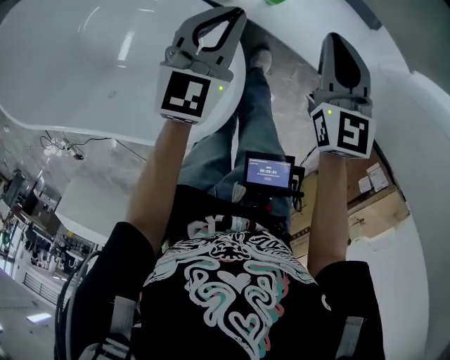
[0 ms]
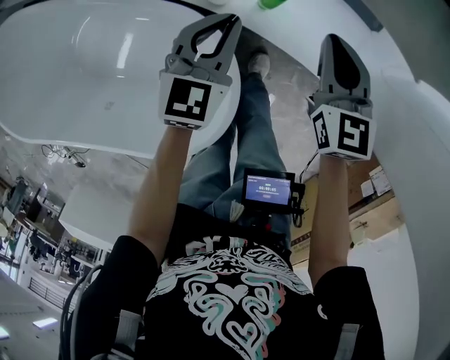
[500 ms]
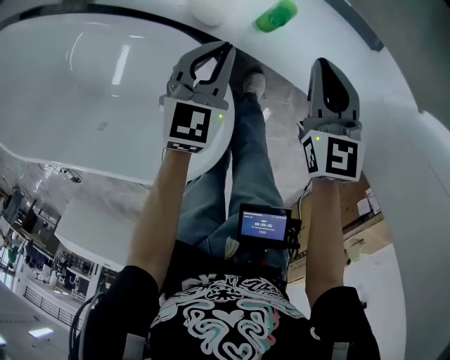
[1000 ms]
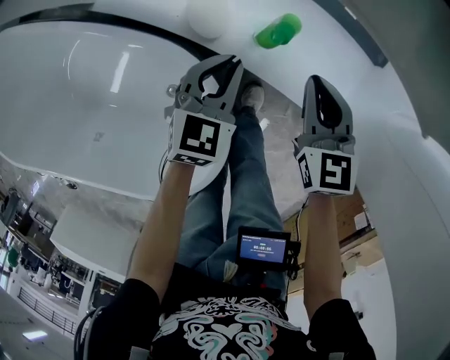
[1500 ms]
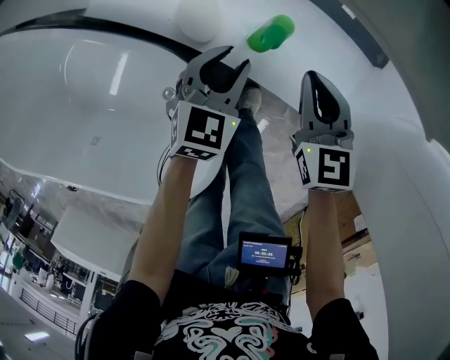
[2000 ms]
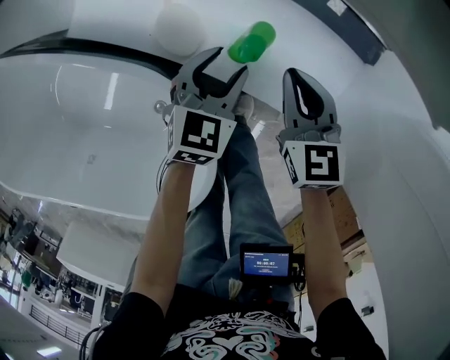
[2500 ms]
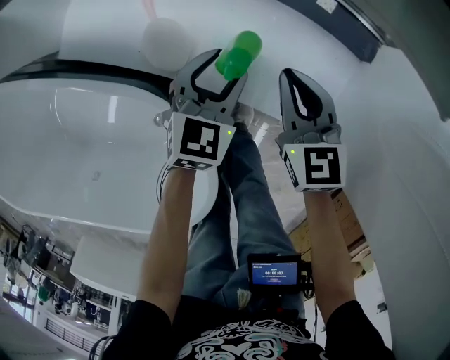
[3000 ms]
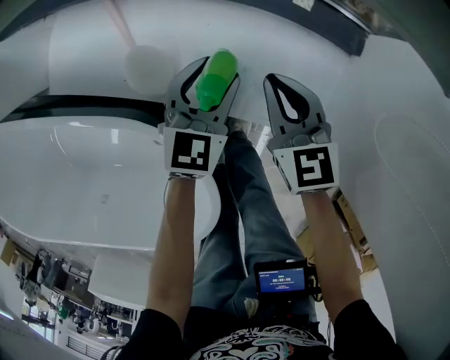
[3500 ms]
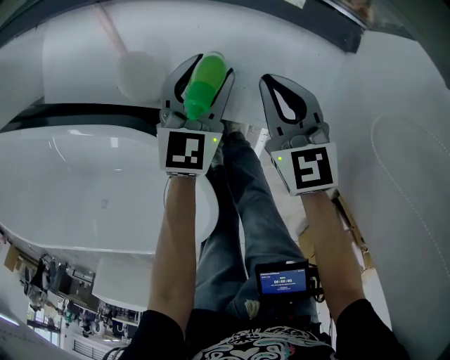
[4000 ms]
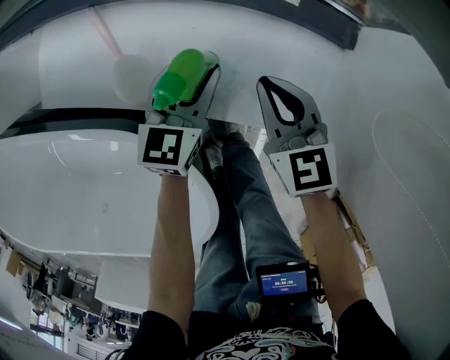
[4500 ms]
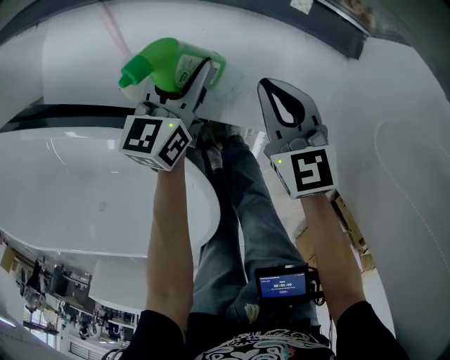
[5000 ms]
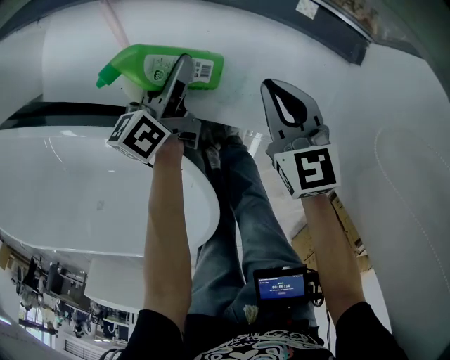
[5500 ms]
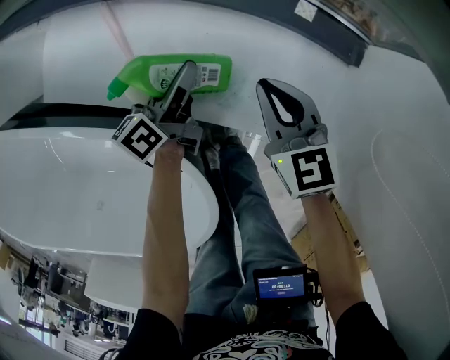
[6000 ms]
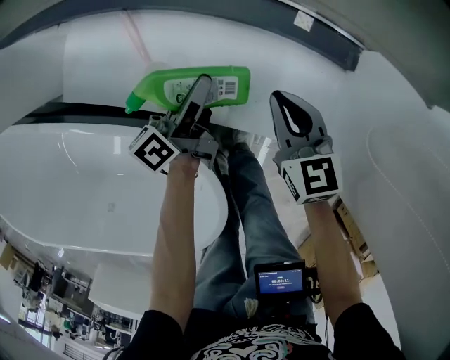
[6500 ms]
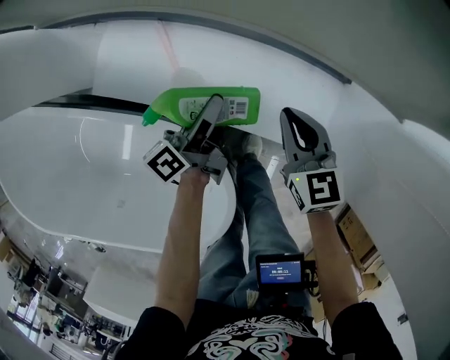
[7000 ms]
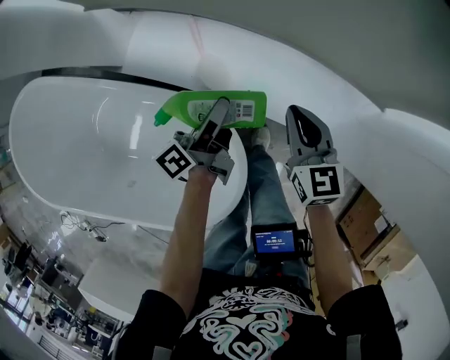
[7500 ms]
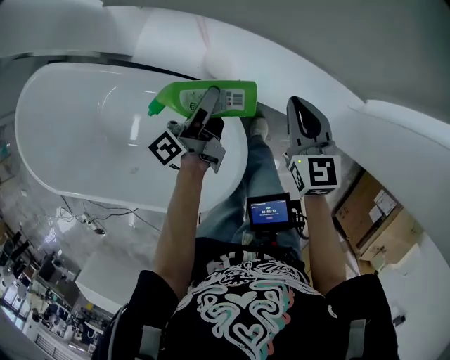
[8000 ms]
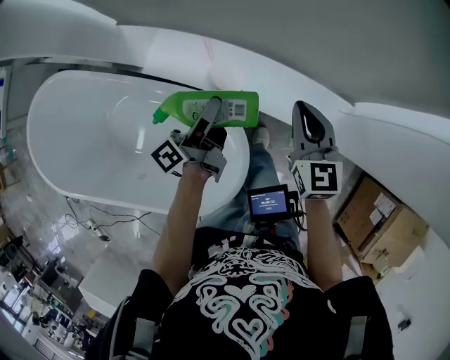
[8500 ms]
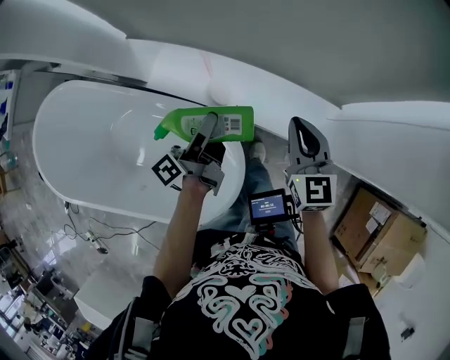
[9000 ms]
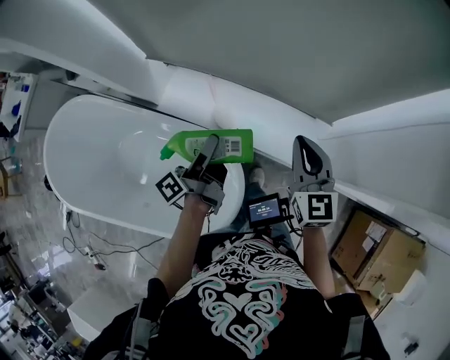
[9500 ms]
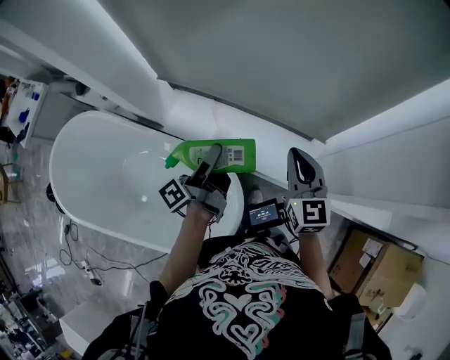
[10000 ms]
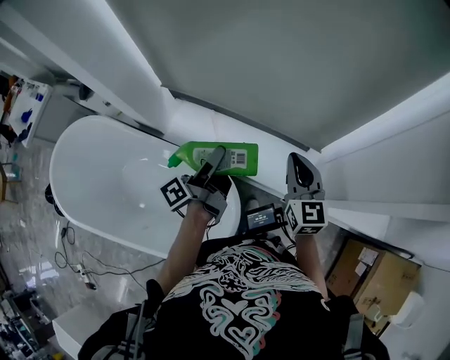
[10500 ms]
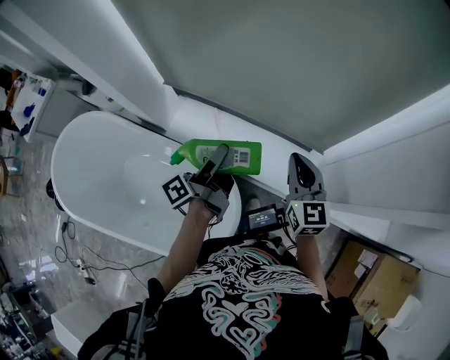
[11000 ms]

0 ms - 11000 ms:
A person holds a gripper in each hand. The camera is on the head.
0 ms - 2000 ms: The grippers both shift downward by roughly 15 cm. The left gripper opens.
2000 ms - 3500 ms: The right gripper moves about 5 cm; the left gripper goes some 10 cm forward and to the right.
3500 ms - 5500 ms: The left gripper travels to the left by approximately 10 cm, and rolls counterclockwise, seen from behind, by approximately 60 degrees.
5500 ms - 7500 ms: The two grippers go approximately 25 cm upward and backward. The left gripper rotates about 30 degrees.
7500 ms - 9000 ms: Both grippers travel together upward, roughly 20 cm.
9000 ms - 11000 ms: The grippers both shift upward by some 15 cm.

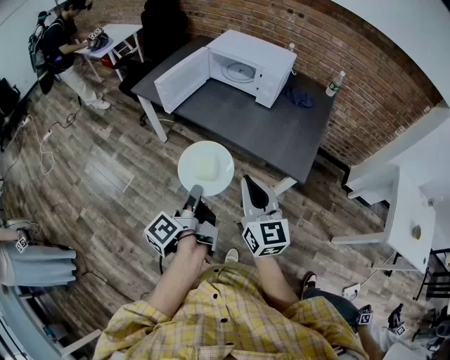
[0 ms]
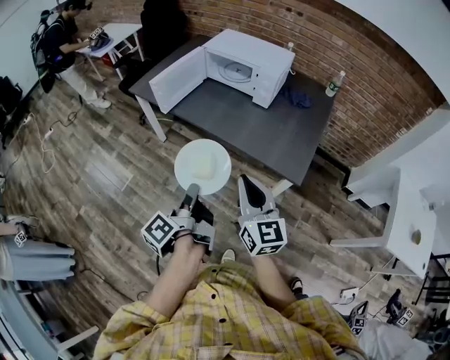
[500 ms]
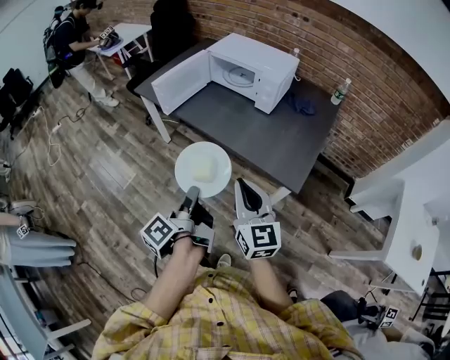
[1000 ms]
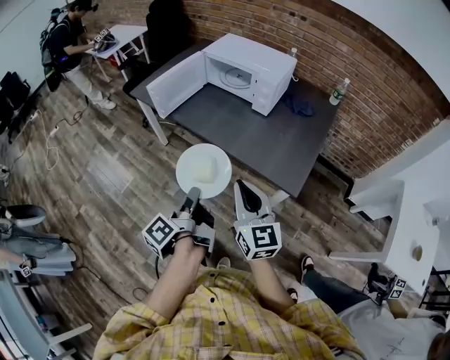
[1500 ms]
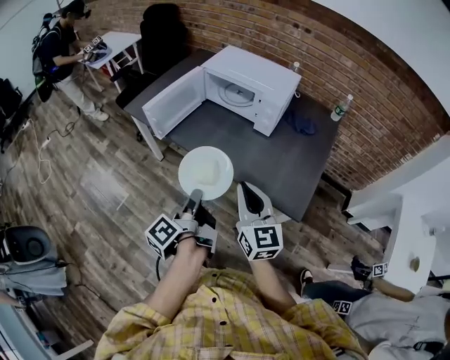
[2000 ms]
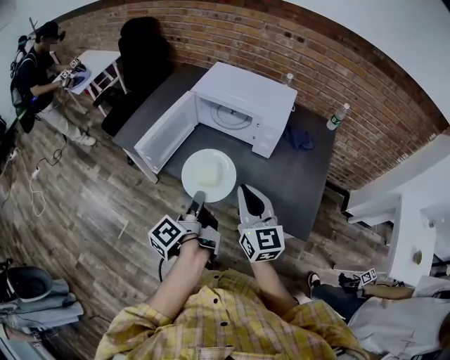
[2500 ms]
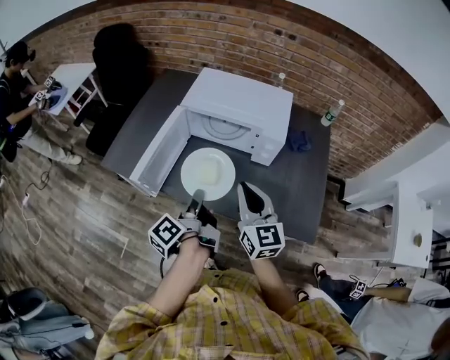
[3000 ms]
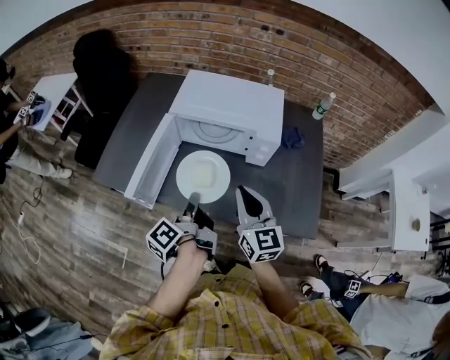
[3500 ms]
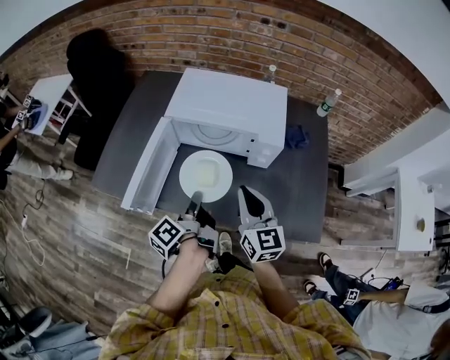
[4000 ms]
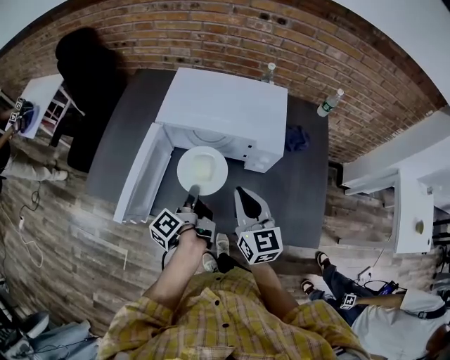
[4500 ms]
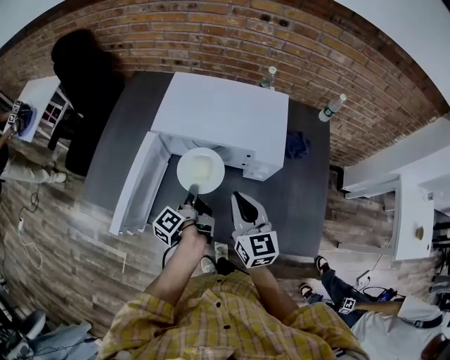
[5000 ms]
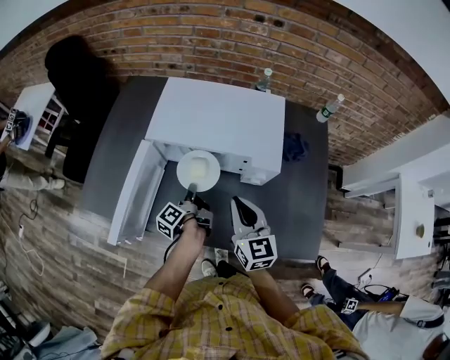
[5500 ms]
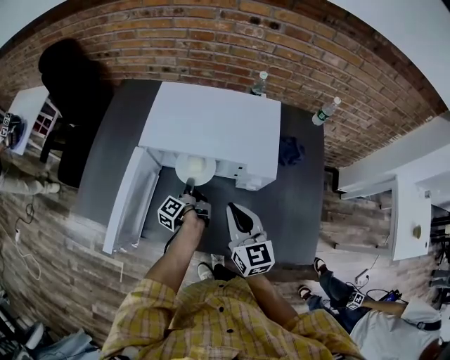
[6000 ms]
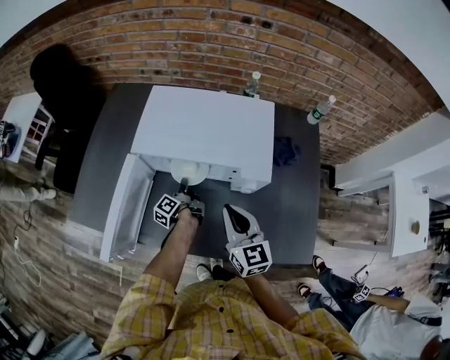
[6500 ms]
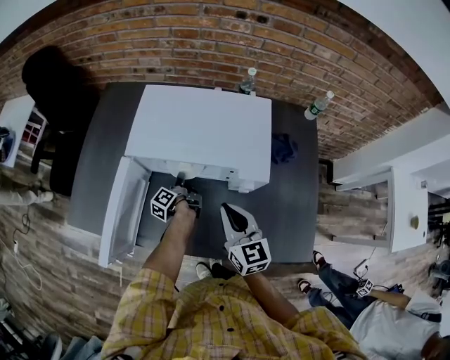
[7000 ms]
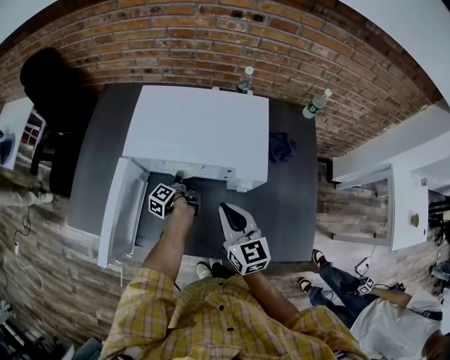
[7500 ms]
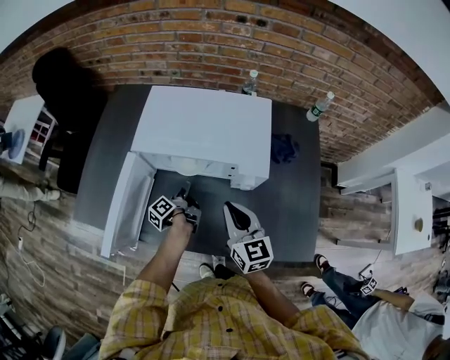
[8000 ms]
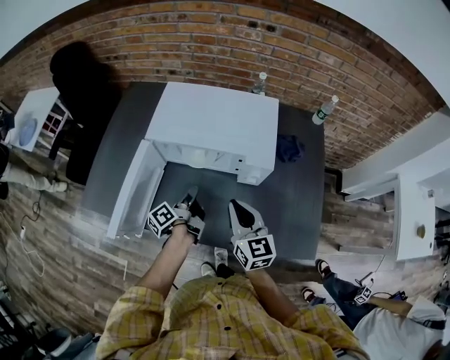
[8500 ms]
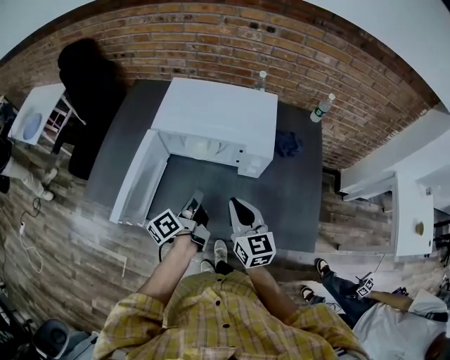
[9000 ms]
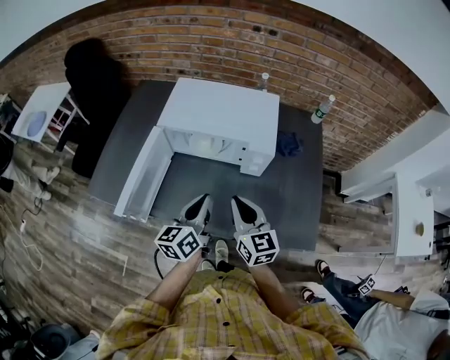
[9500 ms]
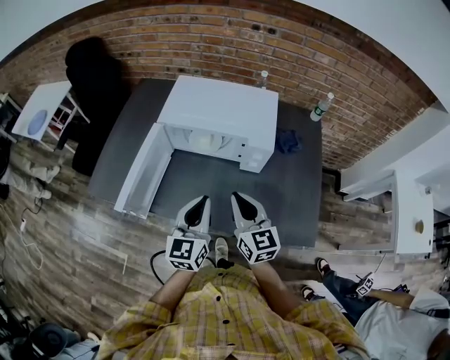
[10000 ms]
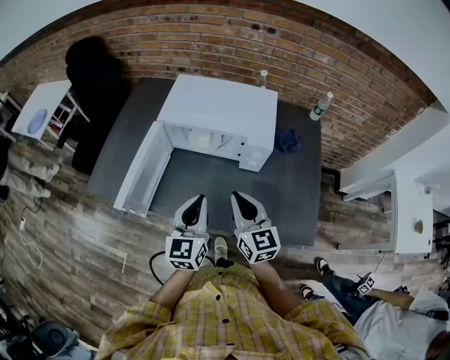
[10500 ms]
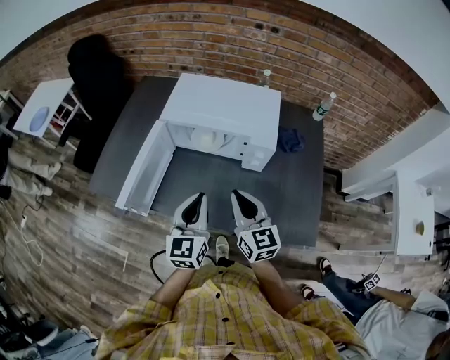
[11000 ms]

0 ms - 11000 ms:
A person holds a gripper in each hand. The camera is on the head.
0 ms - 2000 ms: The right gripper shifts by about 15 cm.
2000 ms - 3500 ms: The right gripper shifts by some 25 cm.
3500 ms - 5500 ms: The right gripper changes place by approximately 15 cm.
7500 ms - 9000 ms: The right gripper ends up some 10 cm from where it was.

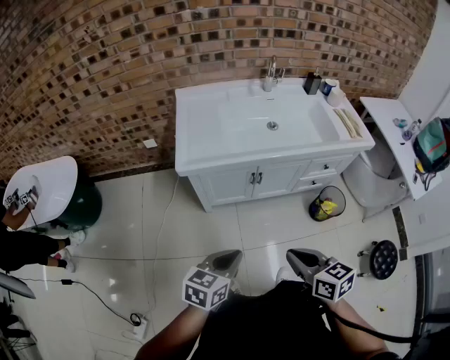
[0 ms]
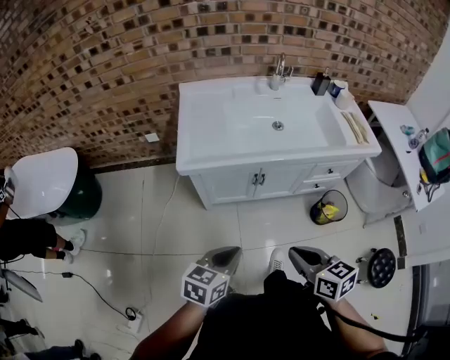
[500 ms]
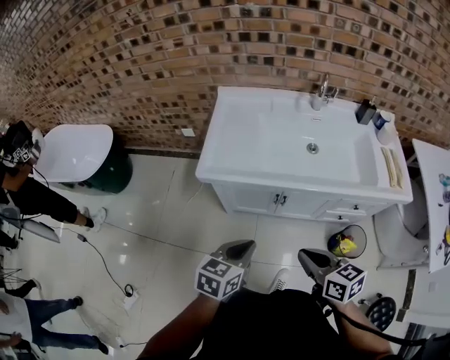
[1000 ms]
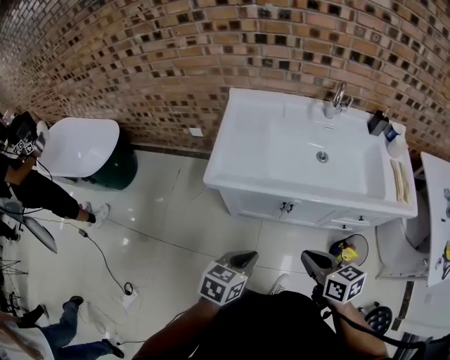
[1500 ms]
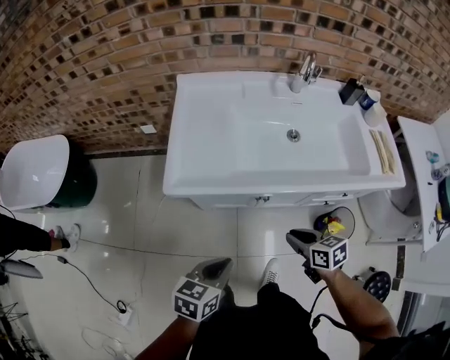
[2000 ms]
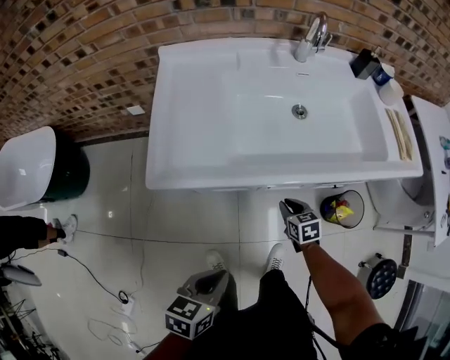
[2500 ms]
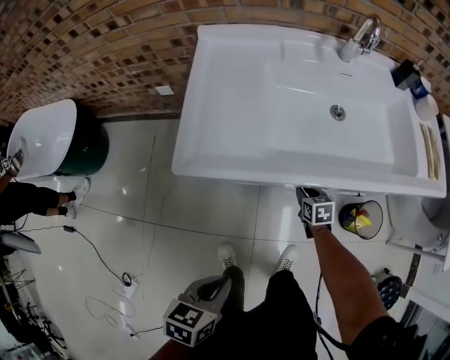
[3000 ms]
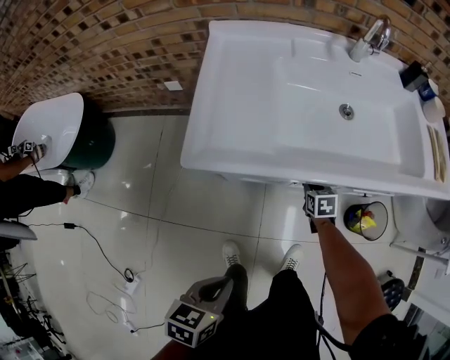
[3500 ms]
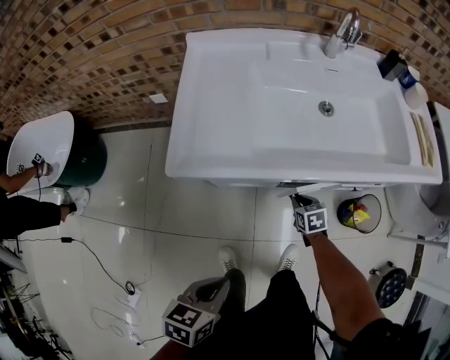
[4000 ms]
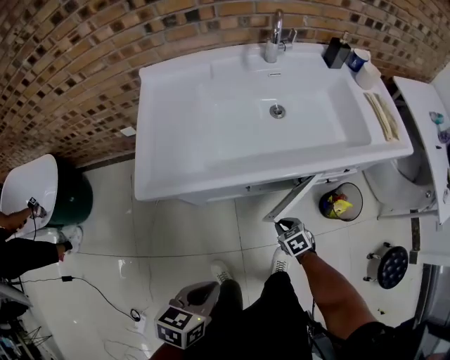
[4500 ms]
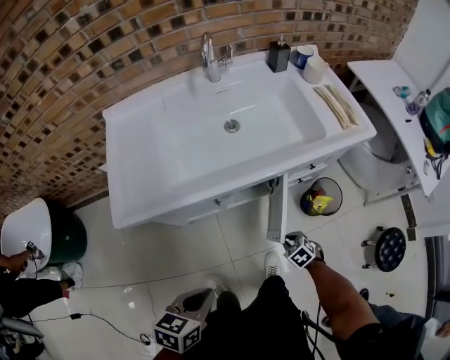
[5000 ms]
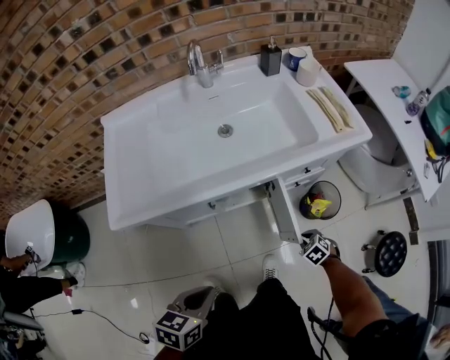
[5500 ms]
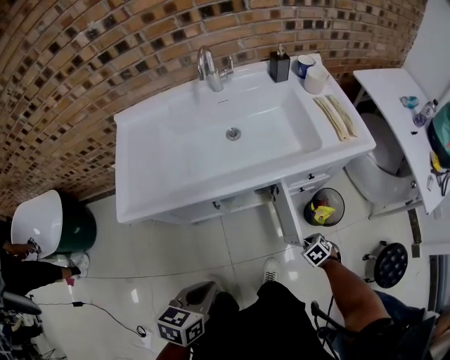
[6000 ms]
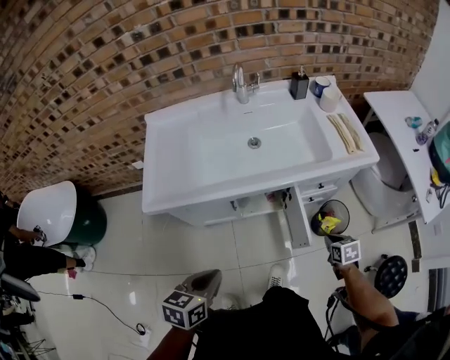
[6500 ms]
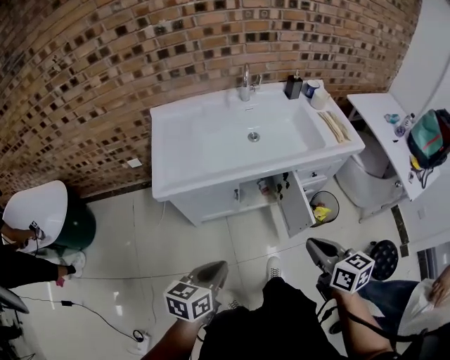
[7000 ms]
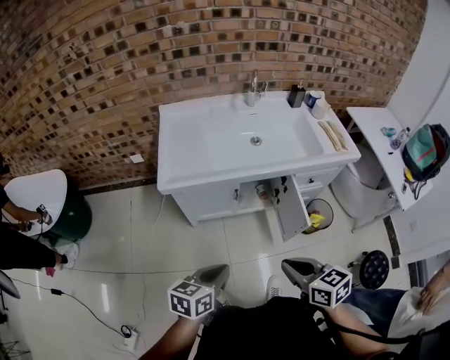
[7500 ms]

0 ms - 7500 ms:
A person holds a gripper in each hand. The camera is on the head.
0 ms - 2000 ms: The right gripper travels forward and downward by some 30 cm. The left gripper travels forward by approximately 15 cm.
2000 ms - 4000 ms: The right gripper heads downward, covering roughly 25 cm, and turns by approximately 20 degrees. The left gripper shifts some 10 cm backward and downward.
4000 ms - 5500 ms: The right gripper moves to the right and backward, some 30 cm, and rotates some 20 degrees; the left gripper heads to the right, covering approximately 15 cm.
5500 ms - 7500 ms: The left gripper changes place by about 15 cm. The right gripper is displaced upward by about 40 cm, and tips its fingers upward by about 40 degrees.
